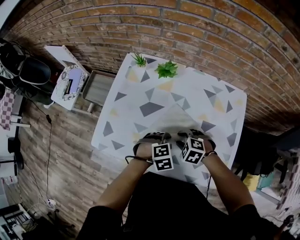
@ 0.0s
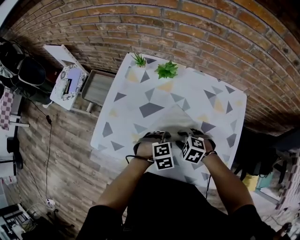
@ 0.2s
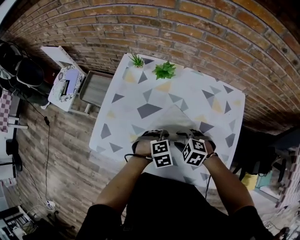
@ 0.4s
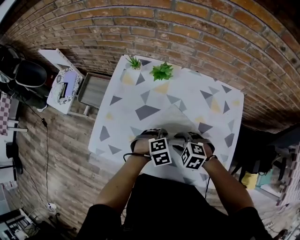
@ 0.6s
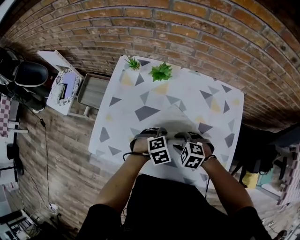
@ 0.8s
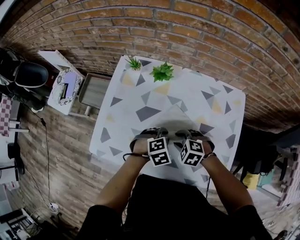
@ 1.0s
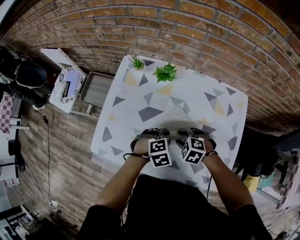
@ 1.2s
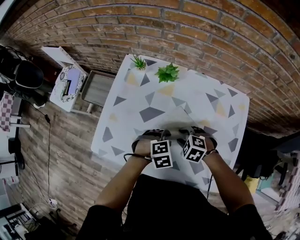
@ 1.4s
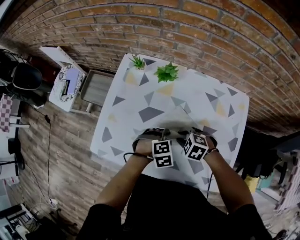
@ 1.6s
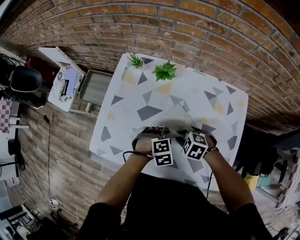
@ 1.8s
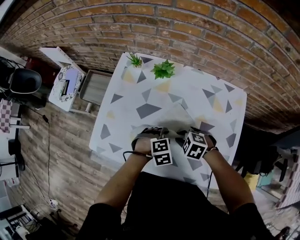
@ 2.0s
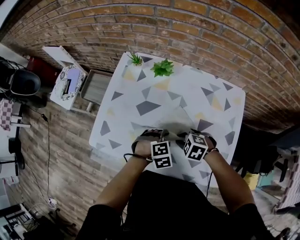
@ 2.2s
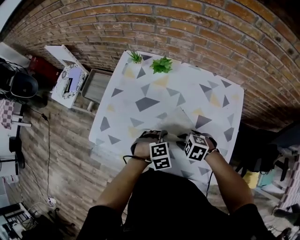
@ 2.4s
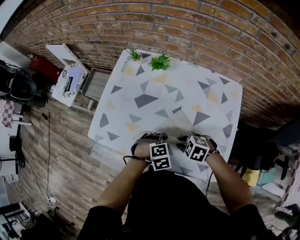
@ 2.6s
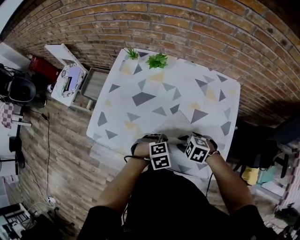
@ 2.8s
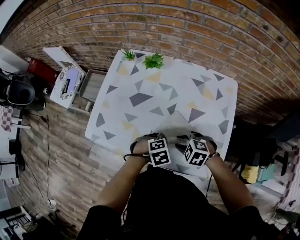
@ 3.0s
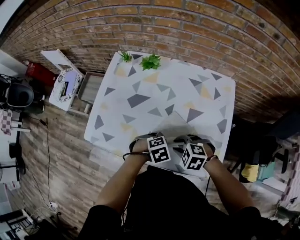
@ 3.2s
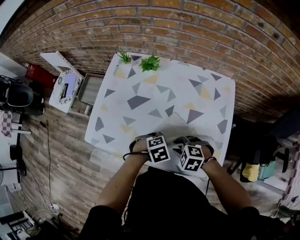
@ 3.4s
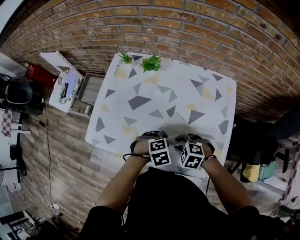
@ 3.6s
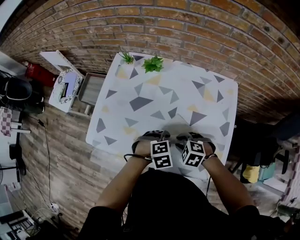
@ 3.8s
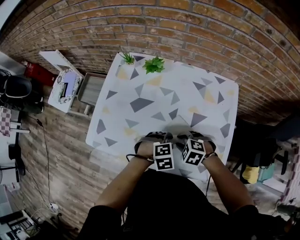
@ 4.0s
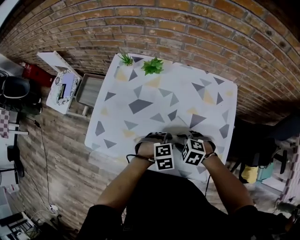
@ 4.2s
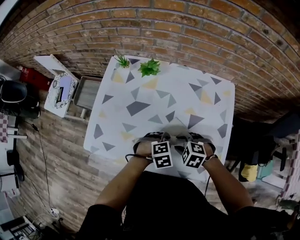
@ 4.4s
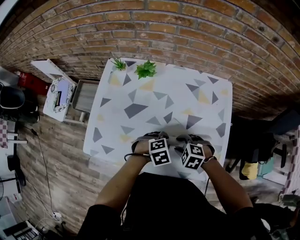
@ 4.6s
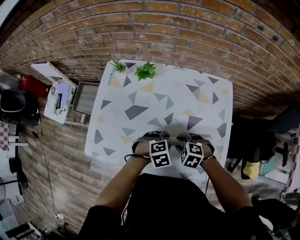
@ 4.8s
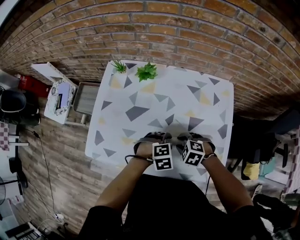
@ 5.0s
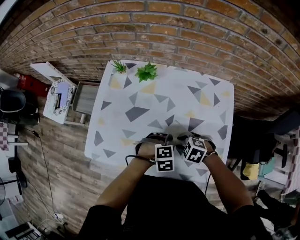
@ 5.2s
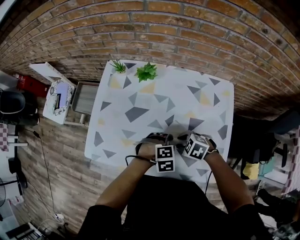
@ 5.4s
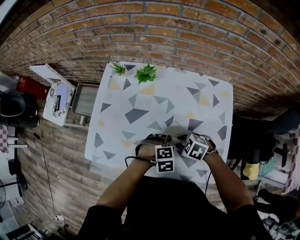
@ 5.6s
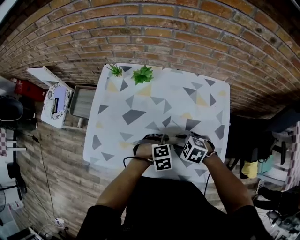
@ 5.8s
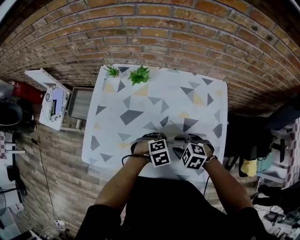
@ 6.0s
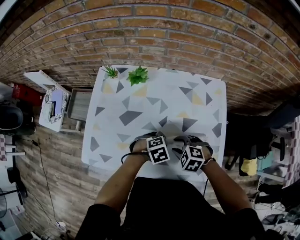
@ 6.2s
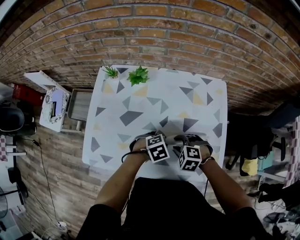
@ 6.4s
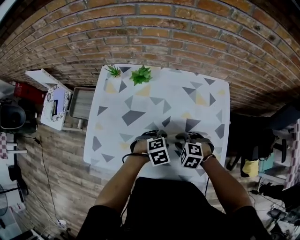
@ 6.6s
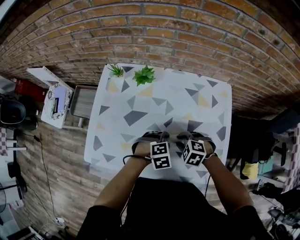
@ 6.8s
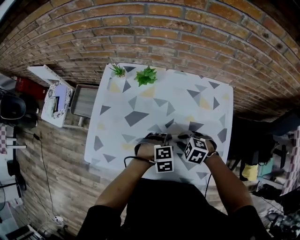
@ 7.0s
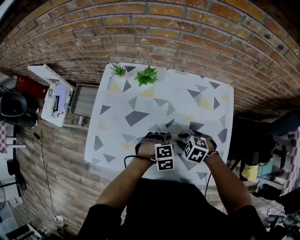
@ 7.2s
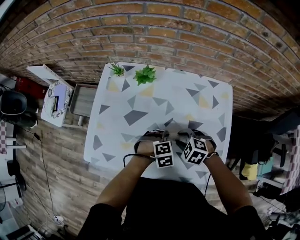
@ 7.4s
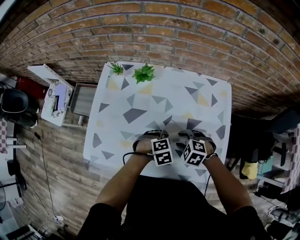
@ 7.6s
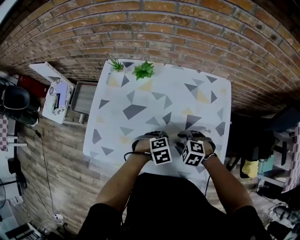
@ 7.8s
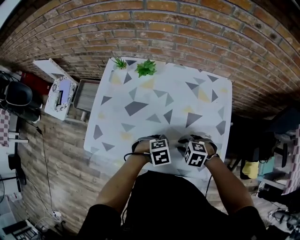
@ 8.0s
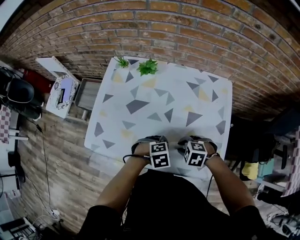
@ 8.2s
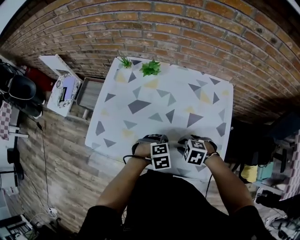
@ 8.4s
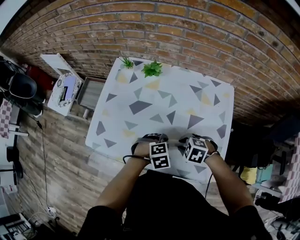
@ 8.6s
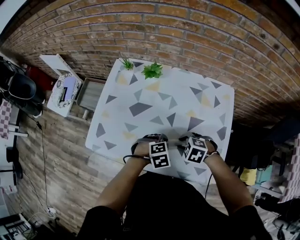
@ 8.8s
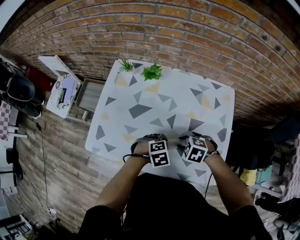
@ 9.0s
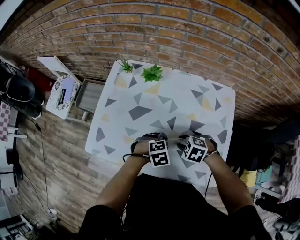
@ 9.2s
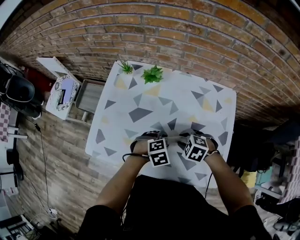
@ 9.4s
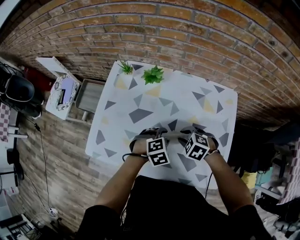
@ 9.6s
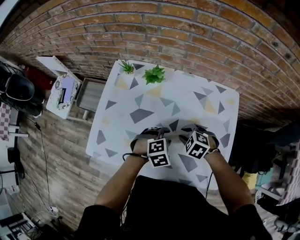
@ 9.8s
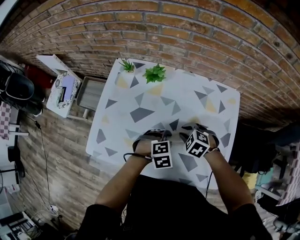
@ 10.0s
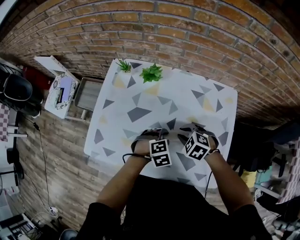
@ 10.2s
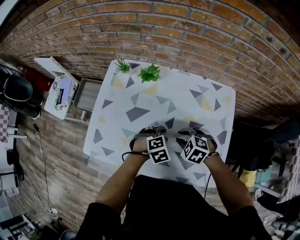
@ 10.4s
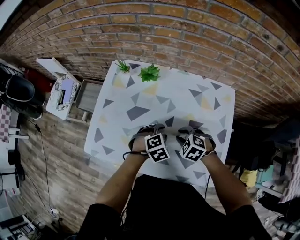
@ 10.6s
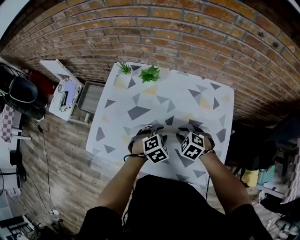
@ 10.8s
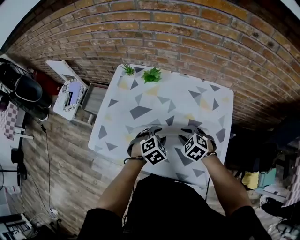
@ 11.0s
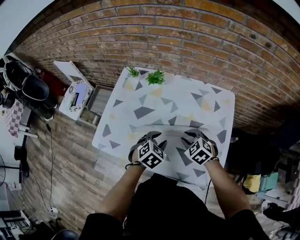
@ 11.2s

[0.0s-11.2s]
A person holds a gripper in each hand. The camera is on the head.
0.0s to 1.6s: There are only small adjustments of the grippers.
1.6s to 3.2s: The right gripper shifts by approximately 15 cm, while the left gripper ends up roughly 10 cm from where it was.
3.2s to 4.8s: The right gripper moves about 5 cm. Meanwhile the left gripper moves roughly 5 cm.
4.8s to 6.4s: There are only small adjustments of the grippers.
6.4s to 8.0s: The left gripper moves roughly 5 cm.
8.0s to 9.6s: The right gripper ends up approximately 10 cm from where it was. The left gripper shifts by some 10 cm.
9.6s to 11.2s: The right gripper ends up roughly 5 cm from where it was. Meanwhile the left gripper moves some 5 cm, and swivels some 30 degrees.

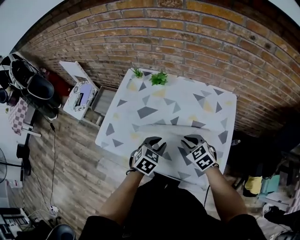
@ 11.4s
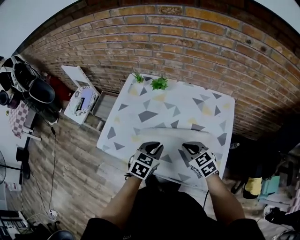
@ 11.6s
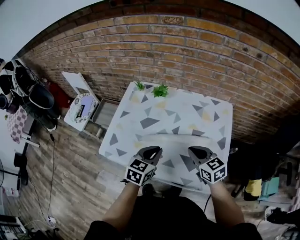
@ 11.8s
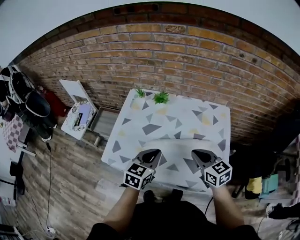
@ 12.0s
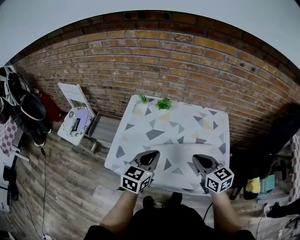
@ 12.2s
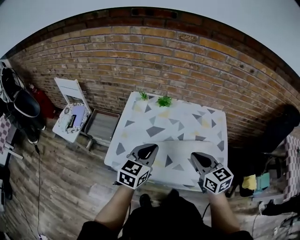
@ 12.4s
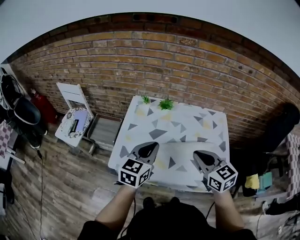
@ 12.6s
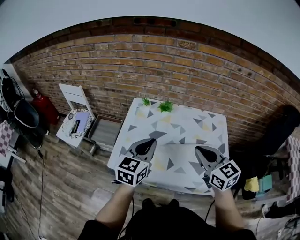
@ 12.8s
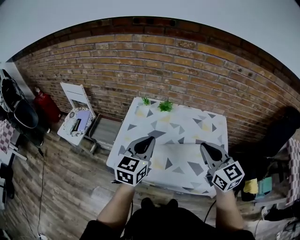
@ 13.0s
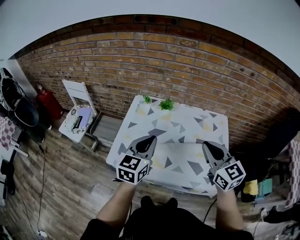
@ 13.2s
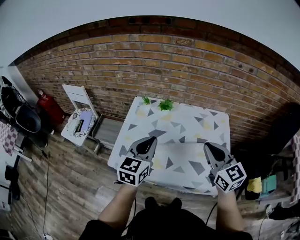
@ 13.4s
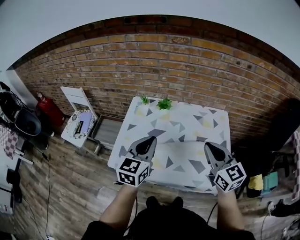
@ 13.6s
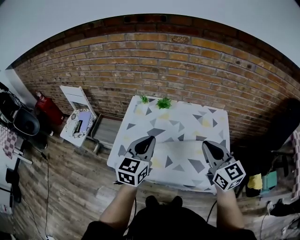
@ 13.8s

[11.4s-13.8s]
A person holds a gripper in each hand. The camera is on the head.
11.4s to 12.6s: The grippers both shift upward and to the left by some 20 cm. The left gripper tilts its fingers roughly 30 degrees upward, and closes up. Meanwhile the right gripper changes its angle by roughly 30 degrees.
12.6s to 13.8s: The right gripper shifts about 10 cm to the right and upward.

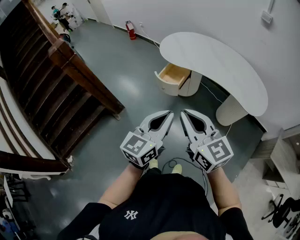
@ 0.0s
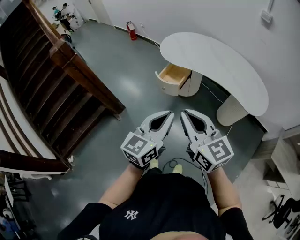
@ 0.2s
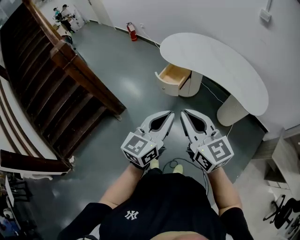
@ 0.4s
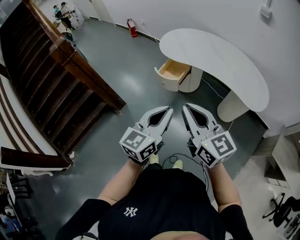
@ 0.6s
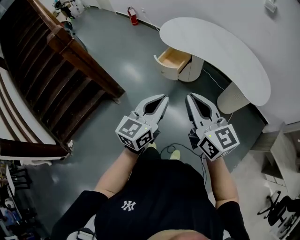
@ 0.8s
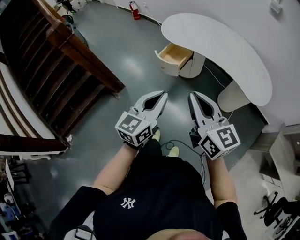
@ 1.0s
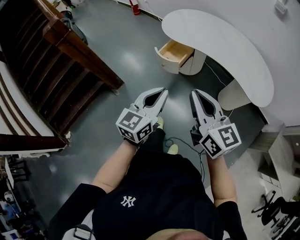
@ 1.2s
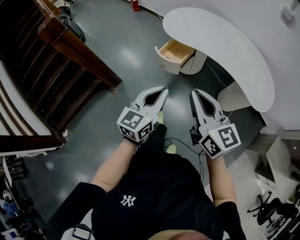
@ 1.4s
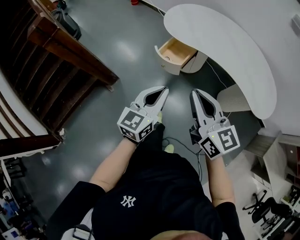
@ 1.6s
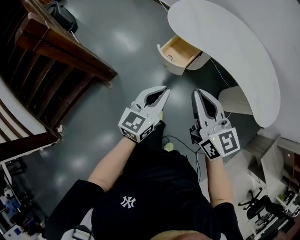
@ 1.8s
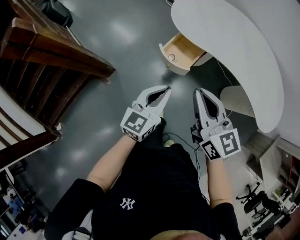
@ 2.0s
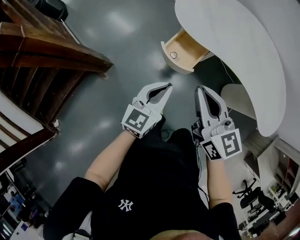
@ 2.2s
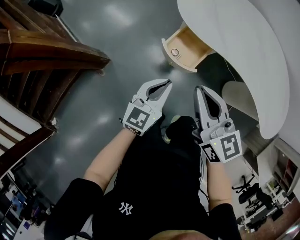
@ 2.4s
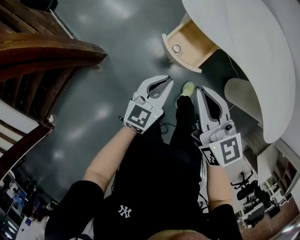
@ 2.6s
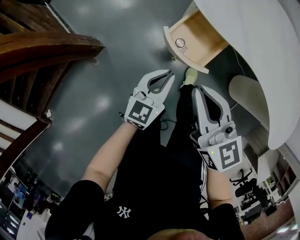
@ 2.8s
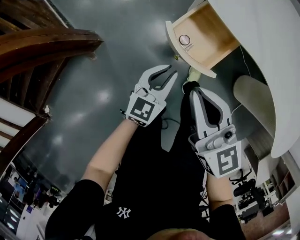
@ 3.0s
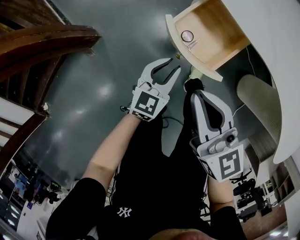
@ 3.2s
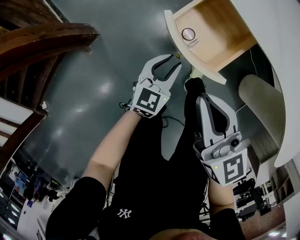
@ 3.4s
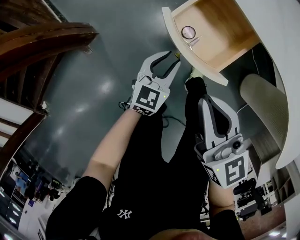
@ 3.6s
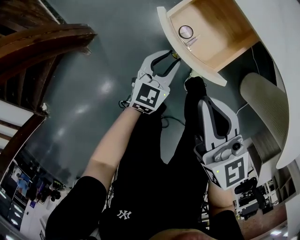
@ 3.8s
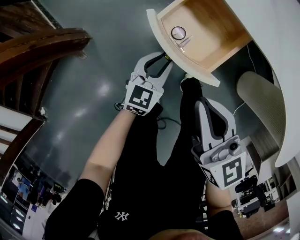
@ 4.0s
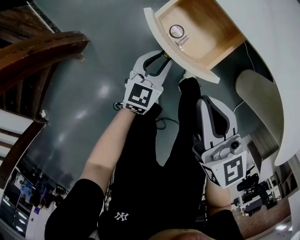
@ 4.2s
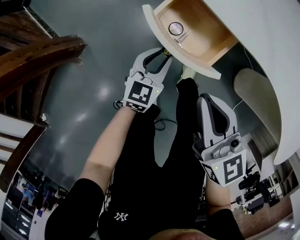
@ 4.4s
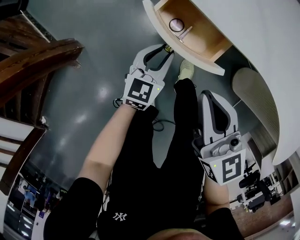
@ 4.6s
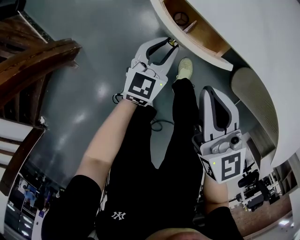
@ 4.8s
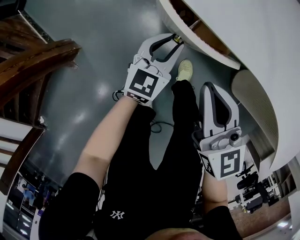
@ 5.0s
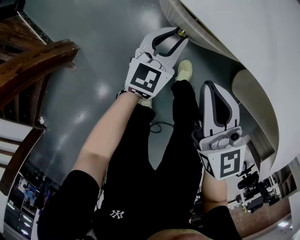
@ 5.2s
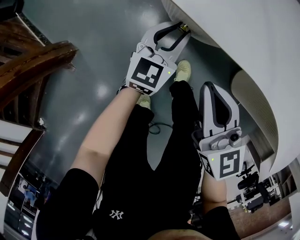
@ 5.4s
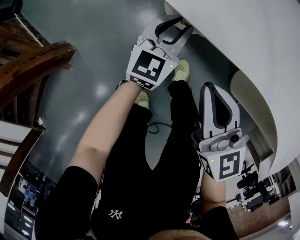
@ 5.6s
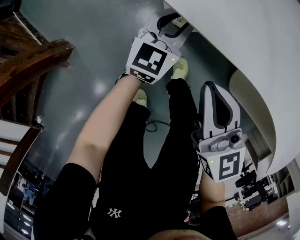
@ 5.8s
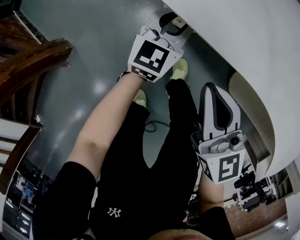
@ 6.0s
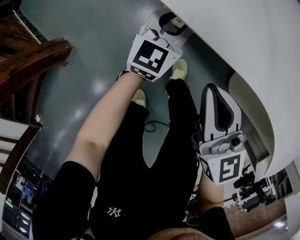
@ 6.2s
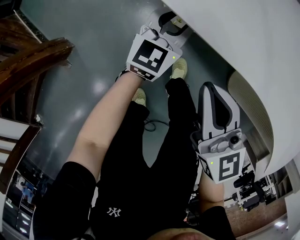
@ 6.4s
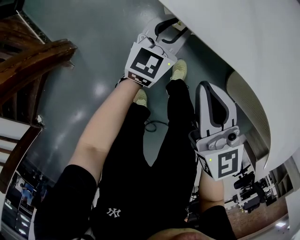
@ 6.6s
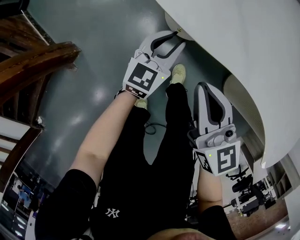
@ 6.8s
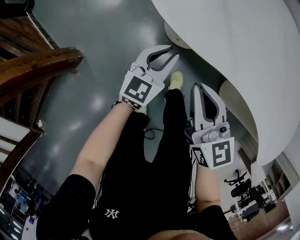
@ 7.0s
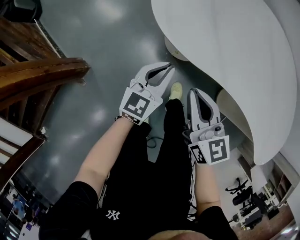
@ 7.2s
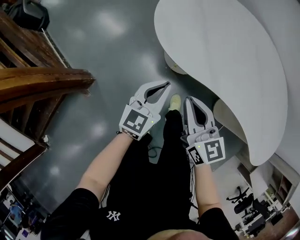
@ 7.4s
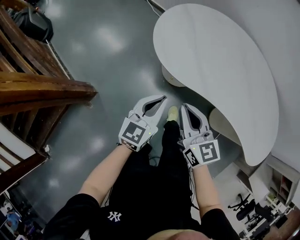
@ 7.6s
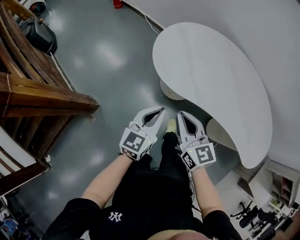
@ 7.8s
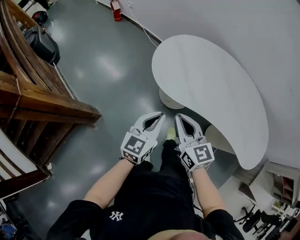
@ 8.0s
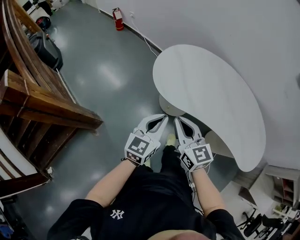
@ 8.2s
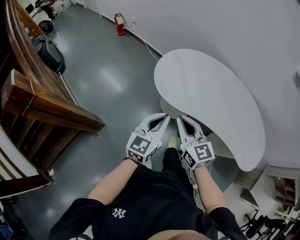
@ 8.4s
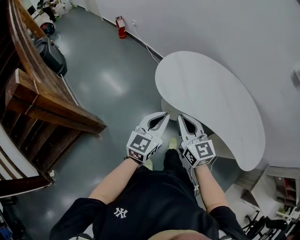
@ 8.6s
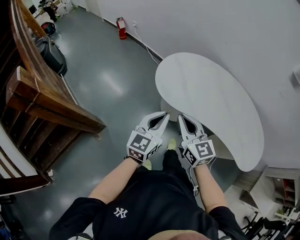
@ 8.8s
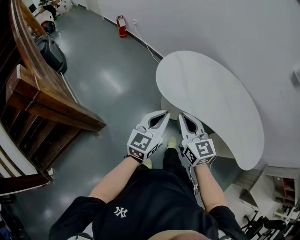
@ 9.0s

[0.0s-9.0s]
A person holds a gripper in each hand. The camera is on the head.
0.0s to 1.6s: Both grippers move forward and downward, roughly 15 cm.
1.6s to 3.0s: Both grippers travel together downward and forward, about 40 cm.
3.0s to 4.4s: The right gripper moves downward and to the right, some 10 cm, while the left gripper travels downward and forward by about 15 cm.
4.4s to 6.0s: The left gripper heads forward and to the right, covering about 20 cm; the right gripper travels forward, to the right and downward by roughly 10 cm.
6.0s to 7.6s: The left gripper shifts about 35 cm upward and backward, and closes its fingers; the right gripper moves upward, approximately 25 cm.
7.6s to 9.0s: The two grippers go some 20 cm upward.

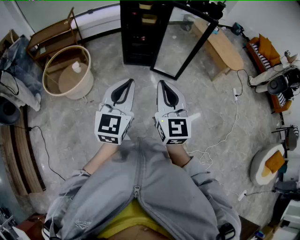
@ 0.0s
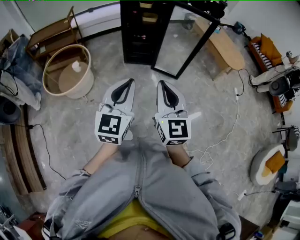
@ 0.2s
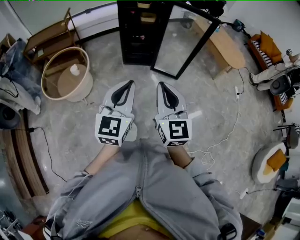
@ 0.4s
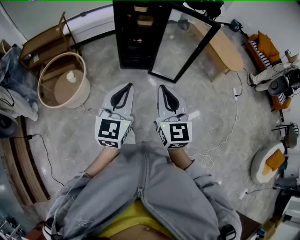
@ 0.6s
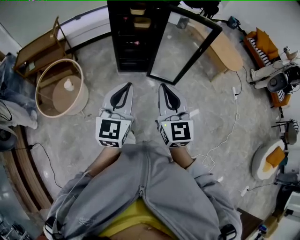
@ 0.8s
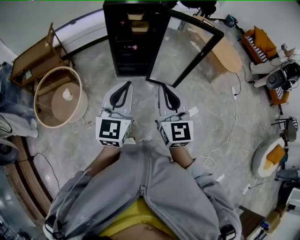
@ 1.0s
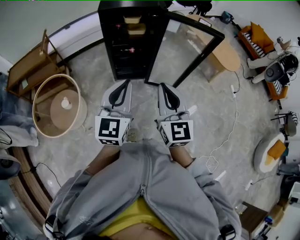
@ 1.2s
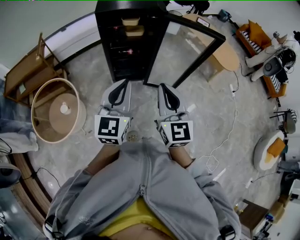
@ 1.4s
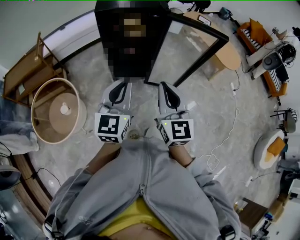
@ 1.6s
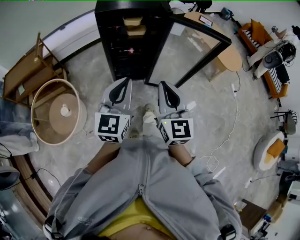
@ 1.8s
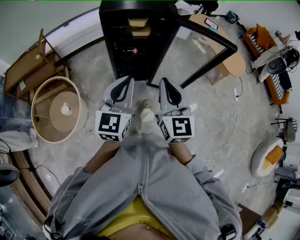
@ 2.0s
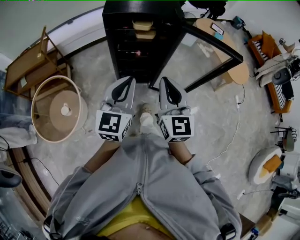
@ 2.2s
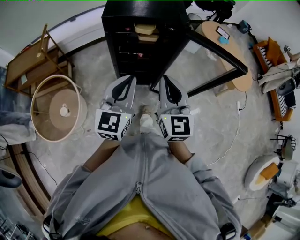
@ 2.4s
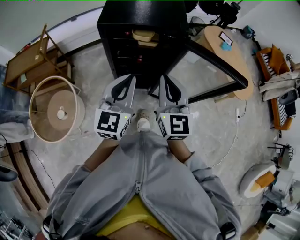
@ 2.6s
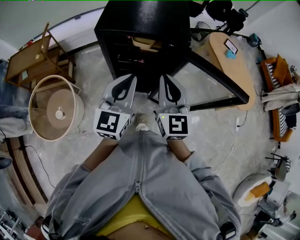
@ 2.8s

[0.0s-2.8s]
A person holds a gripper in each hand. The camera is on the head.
0.0s to 1.4s: The two grippers go some 35 cm forward.
1.4s to 2.8s: Both grippers move forward, about 30 cm.
